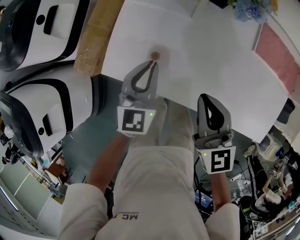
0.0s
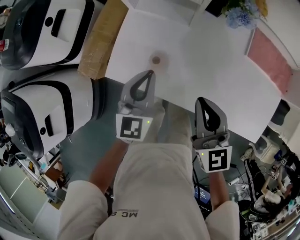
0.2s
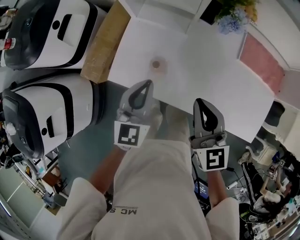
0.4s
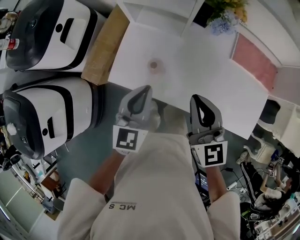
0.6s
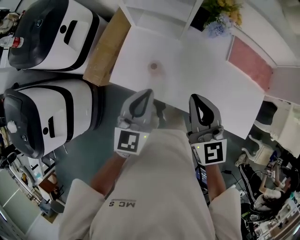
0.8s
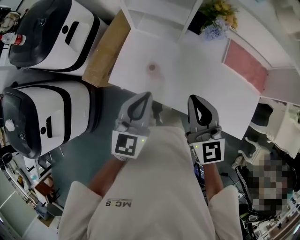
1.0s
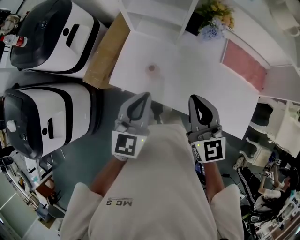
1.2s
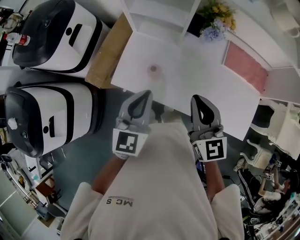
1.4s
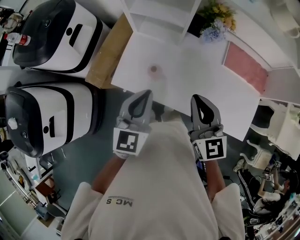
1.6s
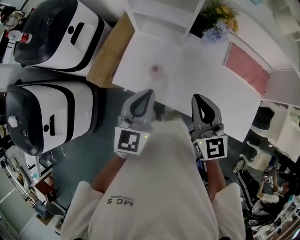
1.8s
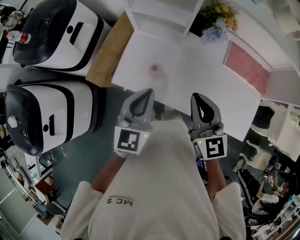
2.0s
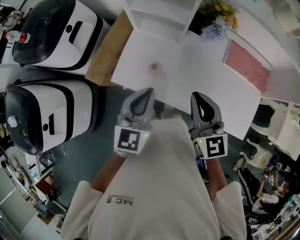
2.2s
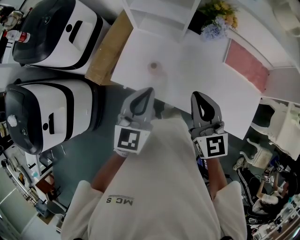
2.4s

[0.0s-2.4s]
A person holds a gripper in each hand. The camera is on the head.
0.0s to 1.2s: The left gripper travels upward and backward by approximately 20 cm, while the right gripper travels upward by approximately 15 cm.
1.2s to 2.4s: Neither gripper changes place.

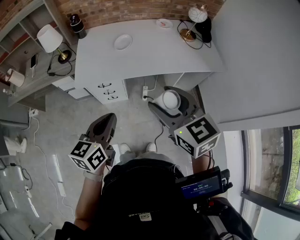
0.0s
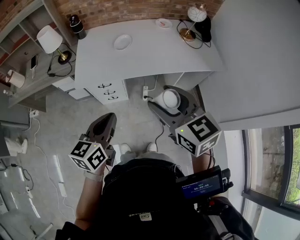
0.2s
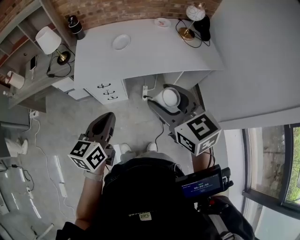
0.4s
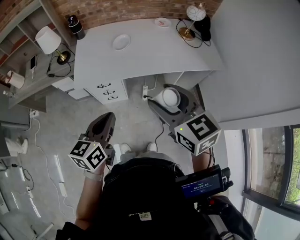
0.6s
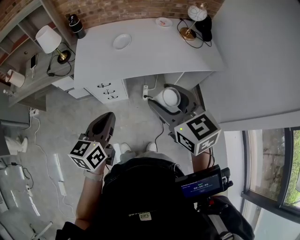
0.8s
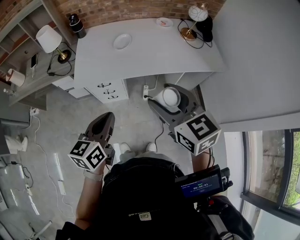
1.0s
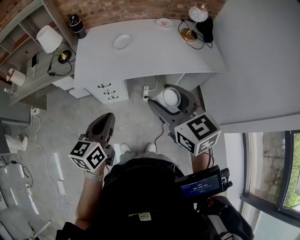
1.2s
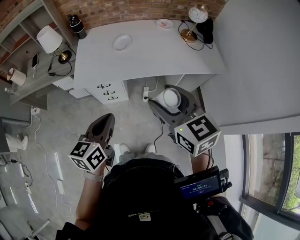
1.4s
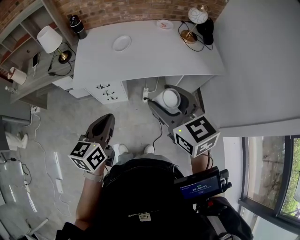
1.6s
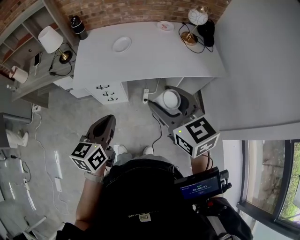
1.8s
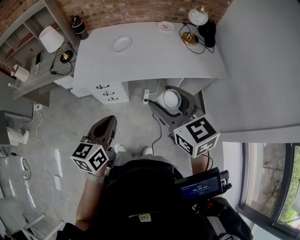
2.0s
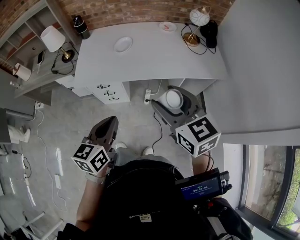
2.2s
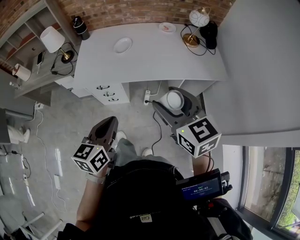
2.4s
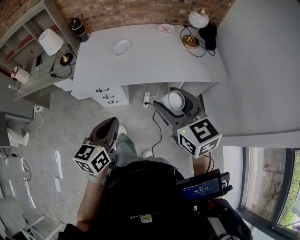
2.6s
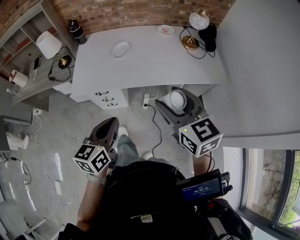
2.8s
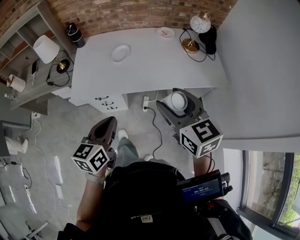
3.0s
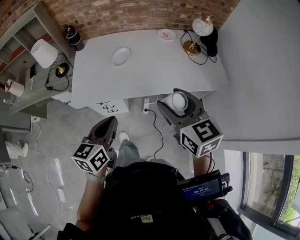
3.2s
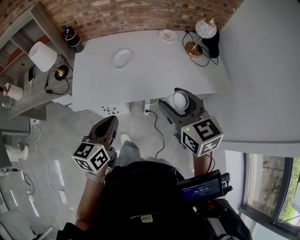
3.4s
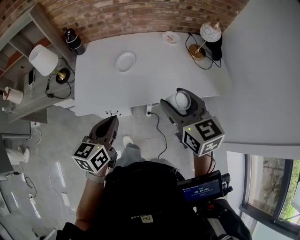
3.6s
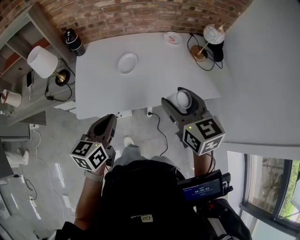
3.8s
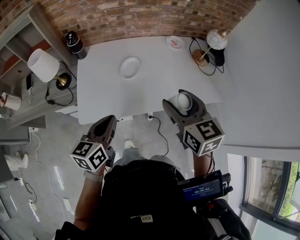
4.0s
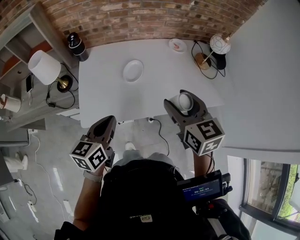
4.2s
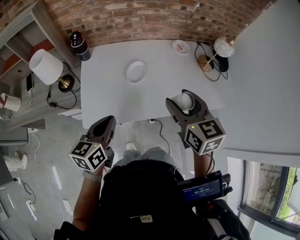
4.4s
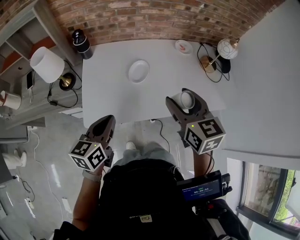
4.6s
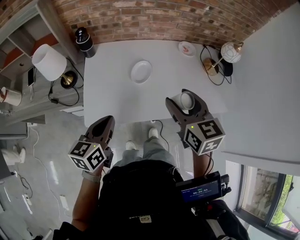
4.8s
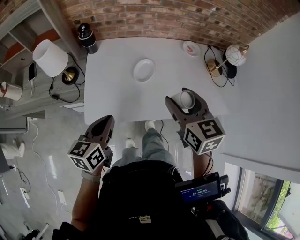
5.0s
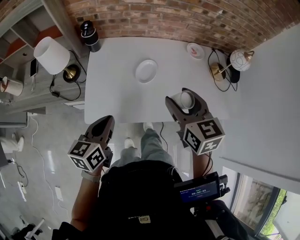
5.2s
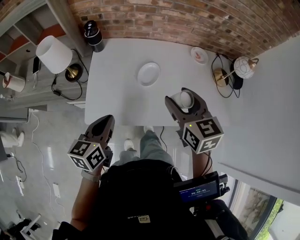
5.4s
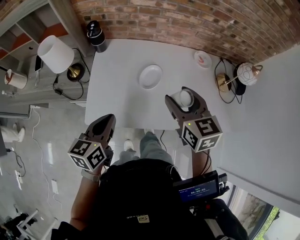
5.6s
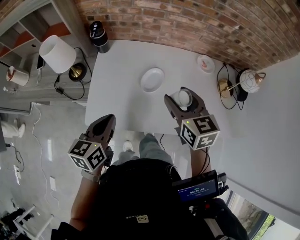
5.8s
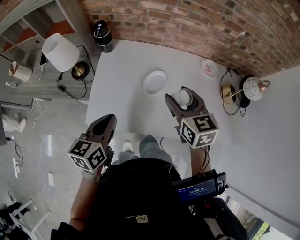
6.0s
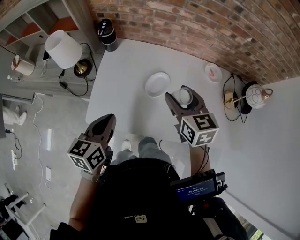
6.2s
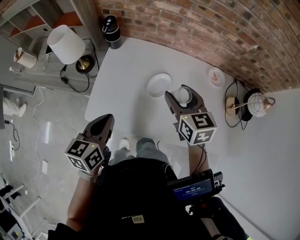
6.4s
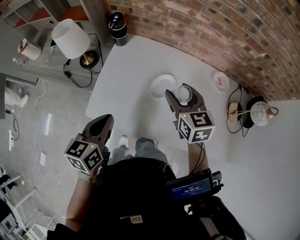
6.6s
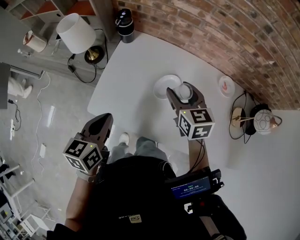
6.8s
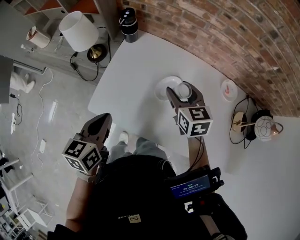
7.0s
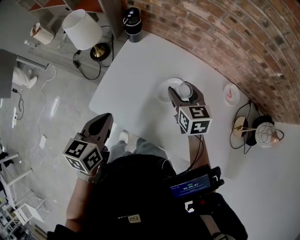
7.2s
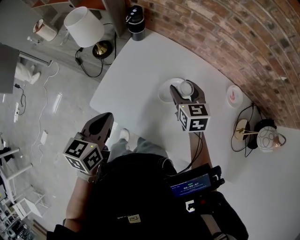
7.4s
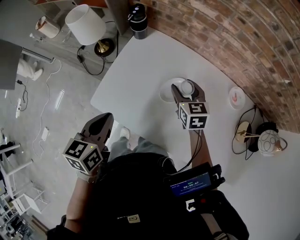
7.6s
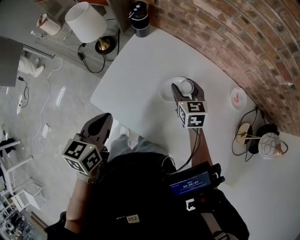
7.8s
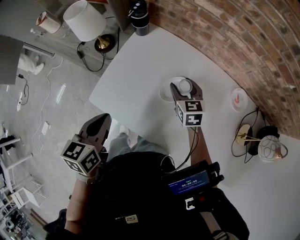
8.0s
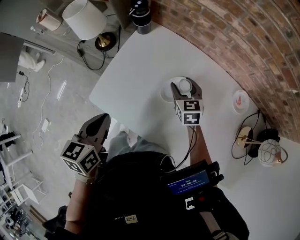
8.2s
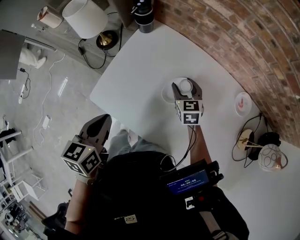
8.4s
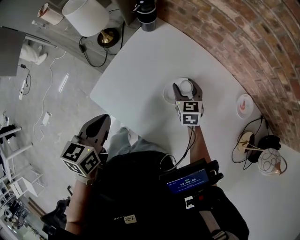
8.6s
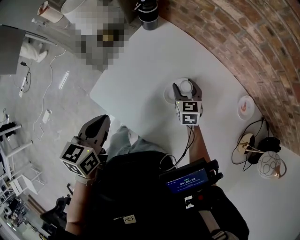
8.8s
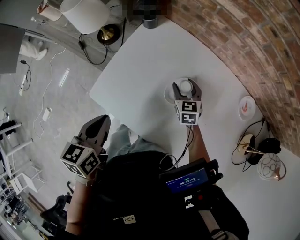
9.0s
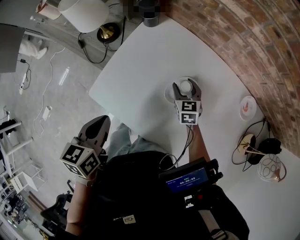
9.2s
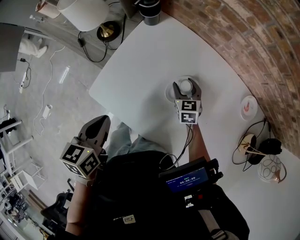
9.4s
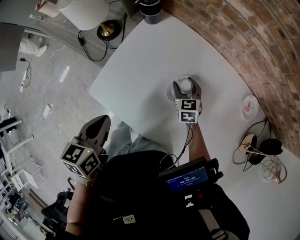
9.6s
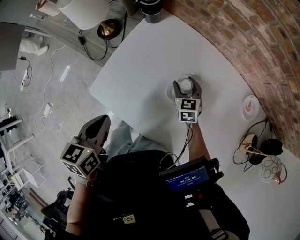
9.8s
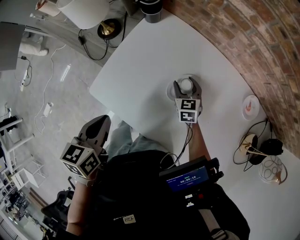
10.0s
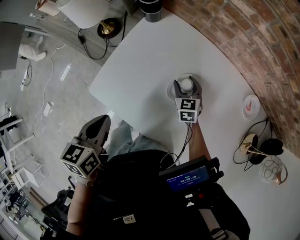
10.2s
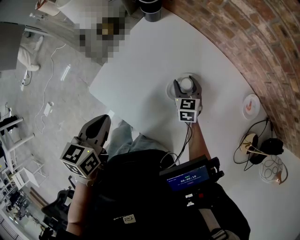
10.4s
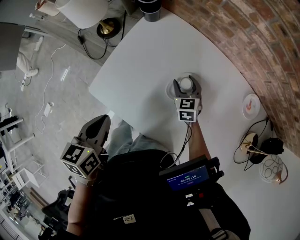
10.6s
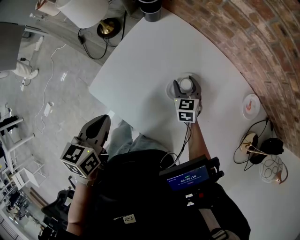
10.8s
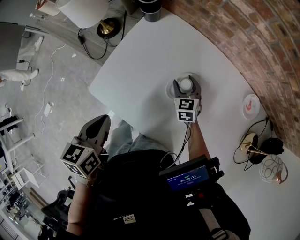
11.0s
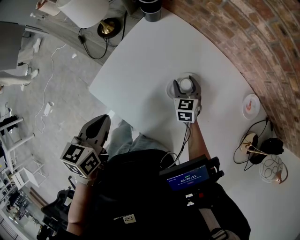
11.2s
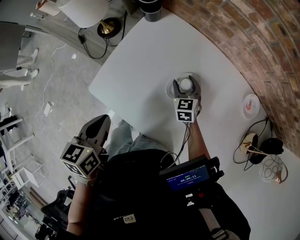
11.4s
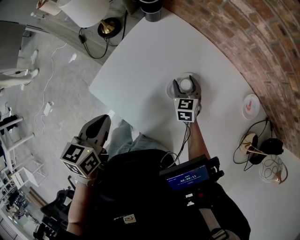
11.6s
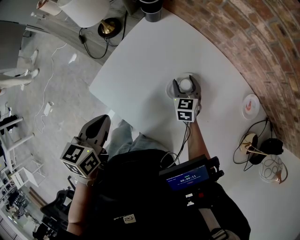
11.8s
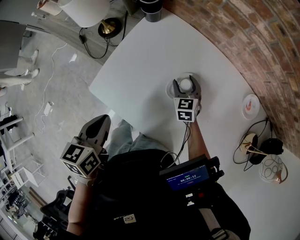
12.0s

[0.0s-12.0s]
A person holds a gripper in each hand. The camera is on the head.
0.0s to 1.6s: The right gripper shifts by some 5 cm.
1.6s to 3.0s: The right gripper is displaced forward and to the right by approximately 10 cm, while the left gripper is displaced forward by some 5 cm.
3.0s to 4.4s: The two grippers go roughly 25 cm forward and to the left.
4.4s to 6.0s: The left gripper is displaced forward by approximately 5 cm. The right gripper travels forward by roughly 15 cm.
6.0s to 7.6s: The left gripper swivels some 20 degrees, while the right gripper travels forward and downward by about 20 cm.
7.6s to 9.0s: The right gripper moves downward, about 15 cm.
9.0s to 10.4s: The grippers move only a little.
10.4s to 12.0s: Neither gripper changes place.

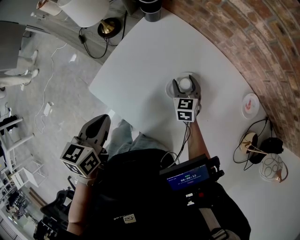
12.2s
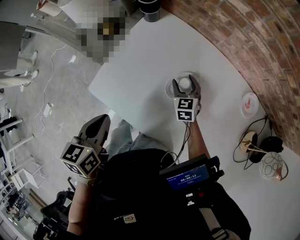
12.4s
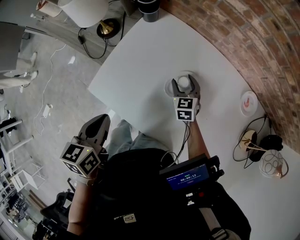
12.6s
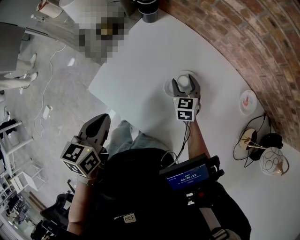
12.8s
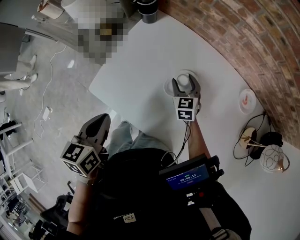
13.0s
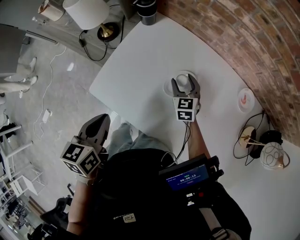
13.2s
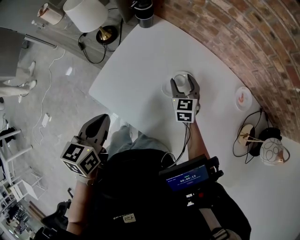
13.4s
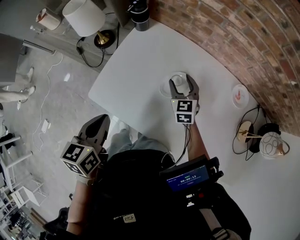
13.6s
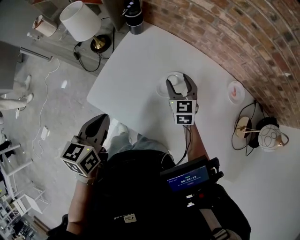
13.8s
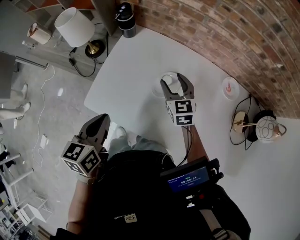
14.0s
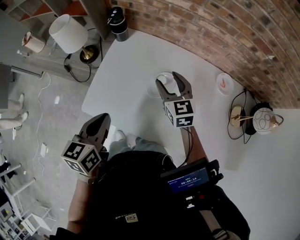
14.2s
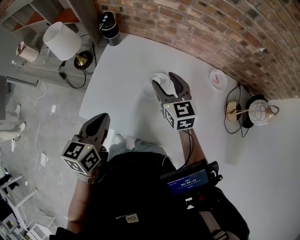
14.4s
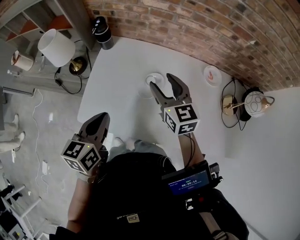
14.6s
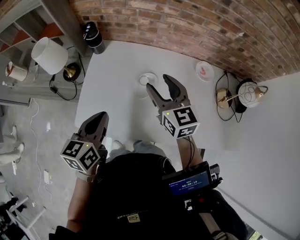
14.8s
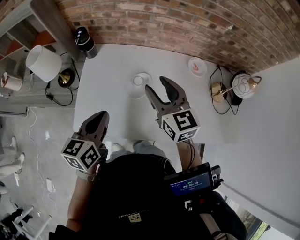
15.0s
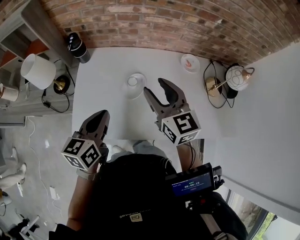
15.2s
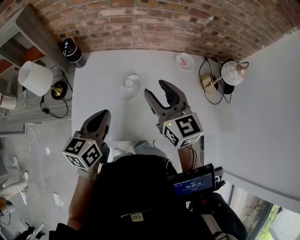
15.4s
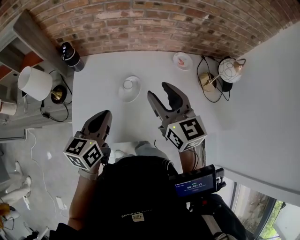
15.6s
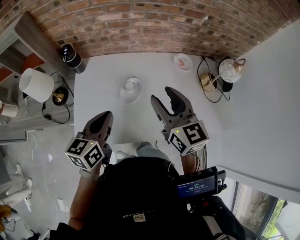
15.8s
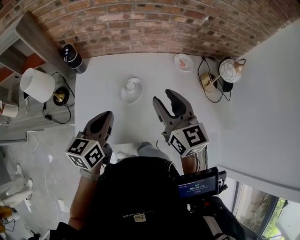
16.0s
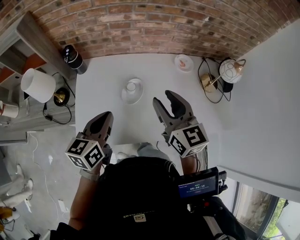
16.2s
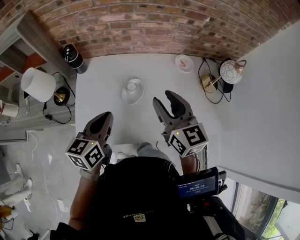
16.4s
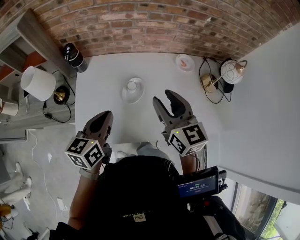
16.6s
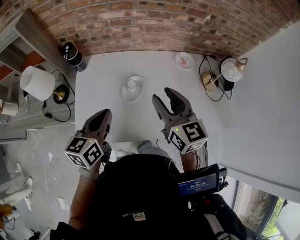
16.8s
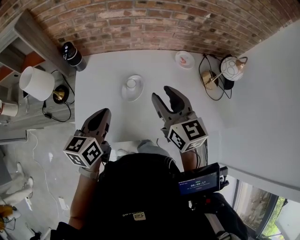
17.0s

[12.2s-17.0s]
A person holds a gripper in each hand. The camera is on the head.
12.2s to 13.8s: The right gripper moves upward, approximately 10 cm.
13.8s to 15.4s: The left gripper moves to the right and forward, approximately 10 cm, and changes its angle by approximately 30 degrees. The right gripper is displaced upward and backward by approximately 25 cm, and turns by some 20 degrees.
15.4s to 17.0s: There are only small adjustments of the grippers.

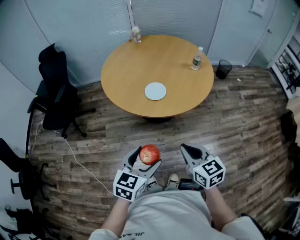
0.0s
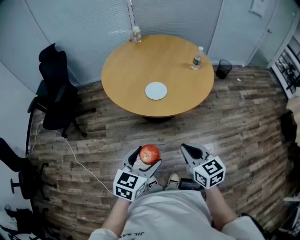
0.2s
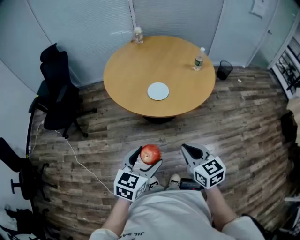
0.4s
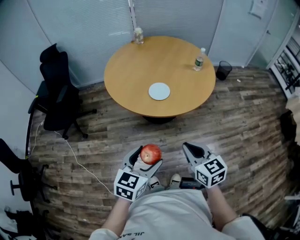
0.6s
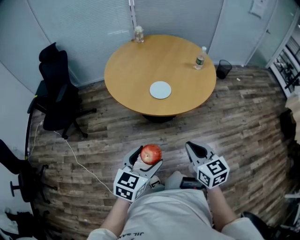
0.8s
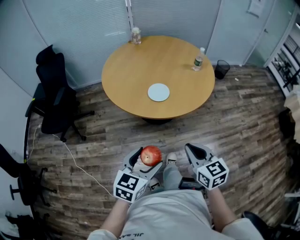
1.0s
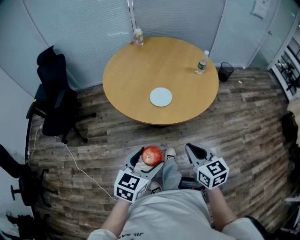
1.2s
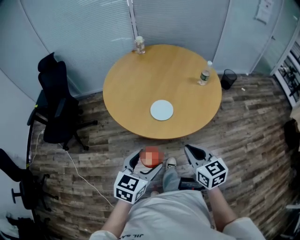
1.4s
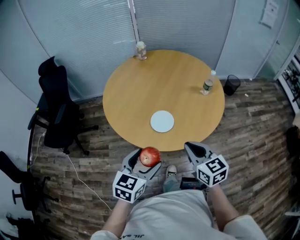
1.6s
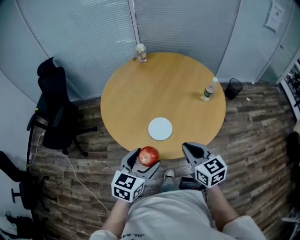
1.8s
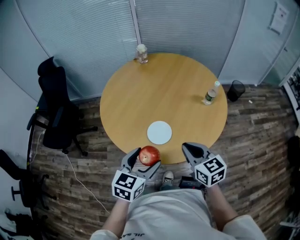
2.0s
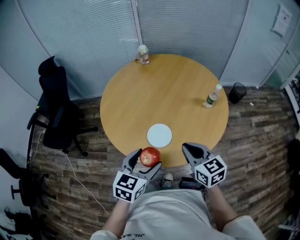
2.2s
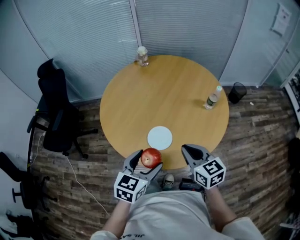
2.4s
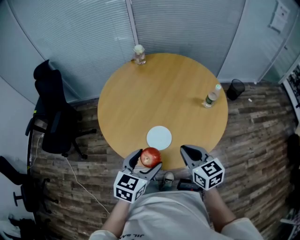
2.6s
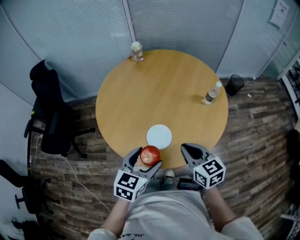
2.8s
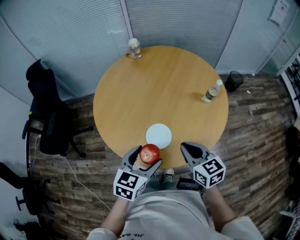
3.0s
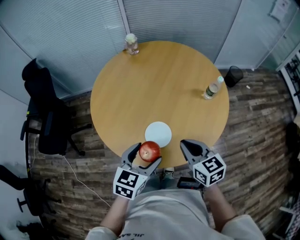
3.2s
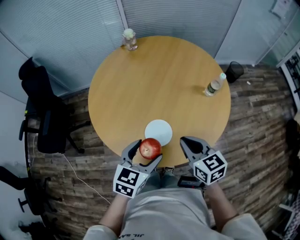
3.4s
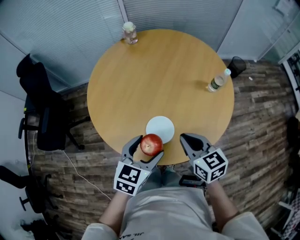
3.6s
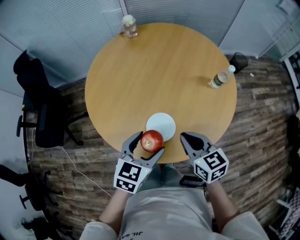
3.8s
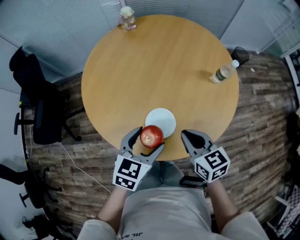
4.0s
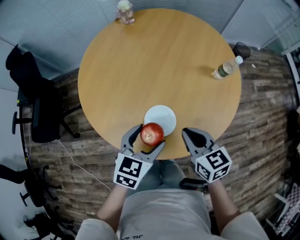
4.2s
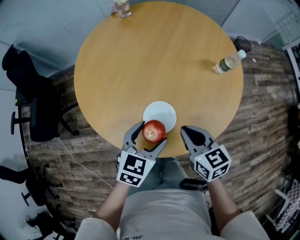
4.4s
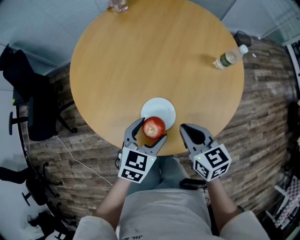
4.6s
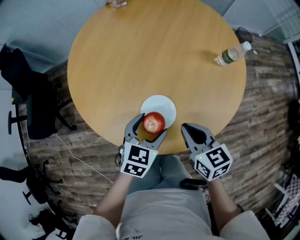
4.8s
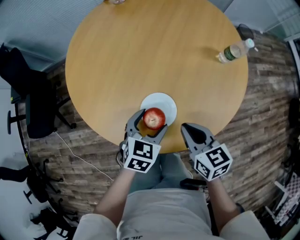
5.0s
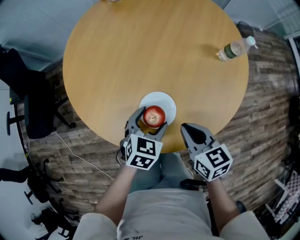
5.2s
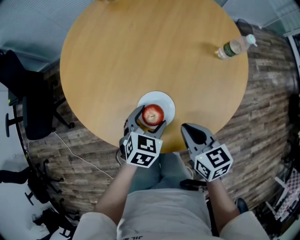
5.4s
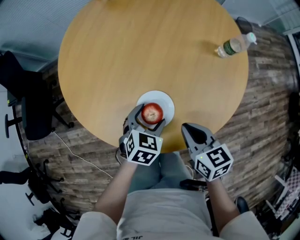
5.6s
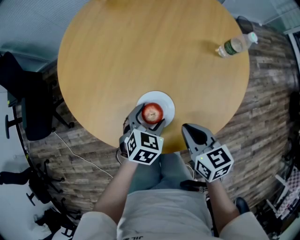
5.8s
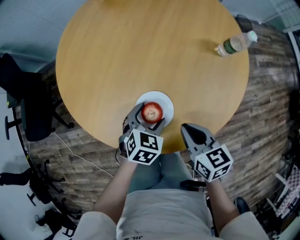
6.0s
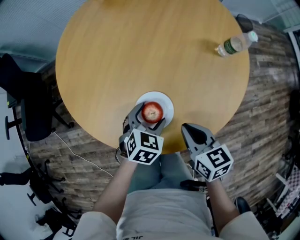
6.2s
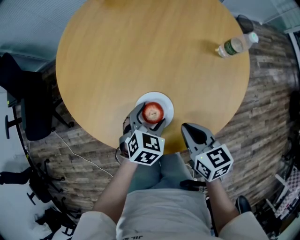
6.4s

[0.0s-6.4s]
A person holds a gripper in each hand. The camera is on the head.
0.0s to 1.6s: The two grippers go approximately 20 cm forward.
1.6s to 3.2s: Both grippers move forward, roughly 15 cm.
3.2s to 4.8s: The left gripper is displaced downward and forward by roughly 15 cm. The right gripper goes approximately 10 cm downward.
4.8s to 6.4s: The left gripper travels downward by roughly 5 cm.
